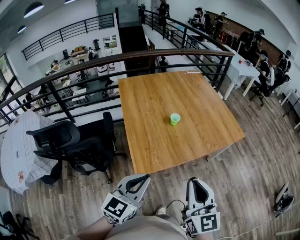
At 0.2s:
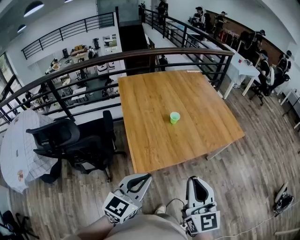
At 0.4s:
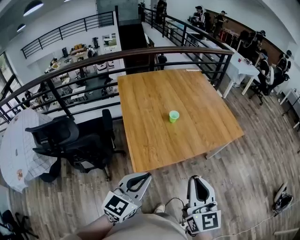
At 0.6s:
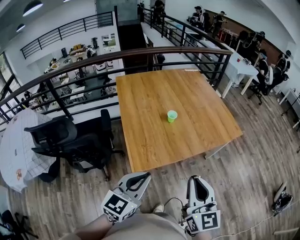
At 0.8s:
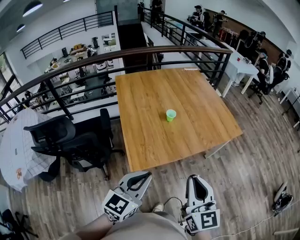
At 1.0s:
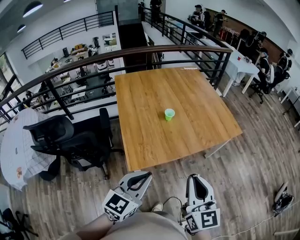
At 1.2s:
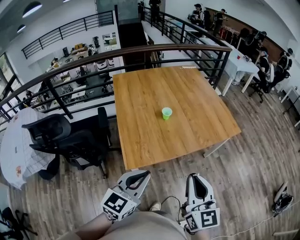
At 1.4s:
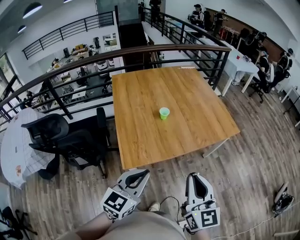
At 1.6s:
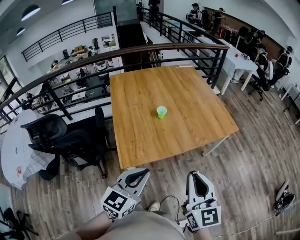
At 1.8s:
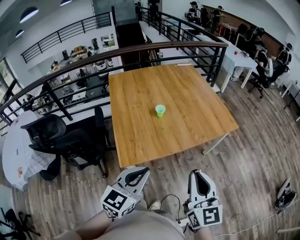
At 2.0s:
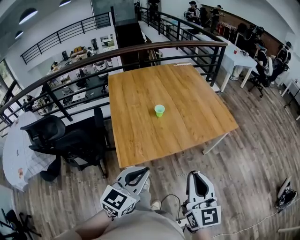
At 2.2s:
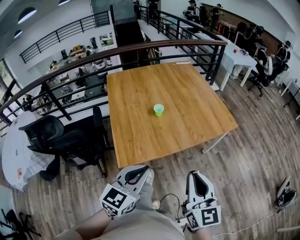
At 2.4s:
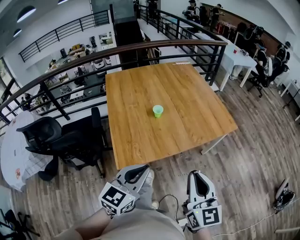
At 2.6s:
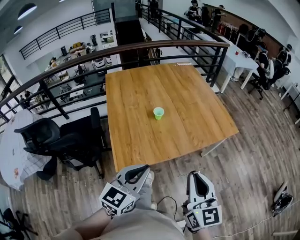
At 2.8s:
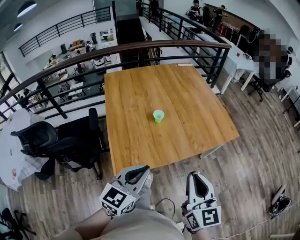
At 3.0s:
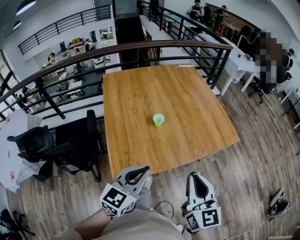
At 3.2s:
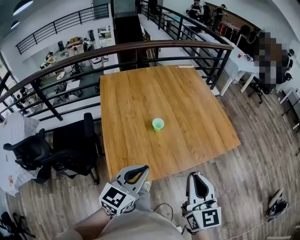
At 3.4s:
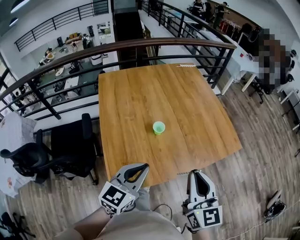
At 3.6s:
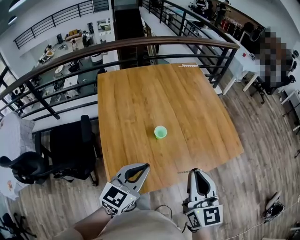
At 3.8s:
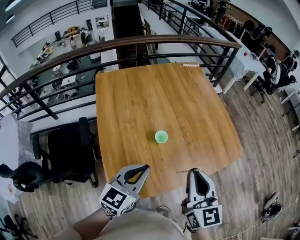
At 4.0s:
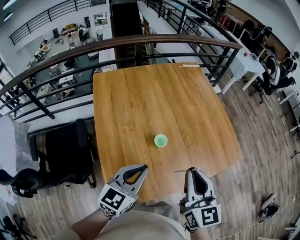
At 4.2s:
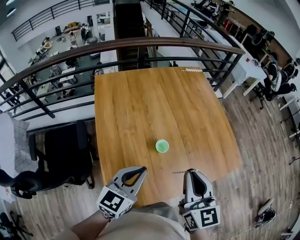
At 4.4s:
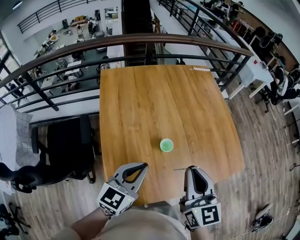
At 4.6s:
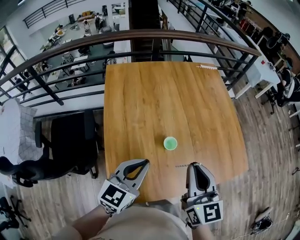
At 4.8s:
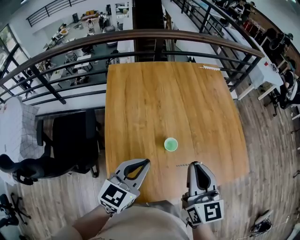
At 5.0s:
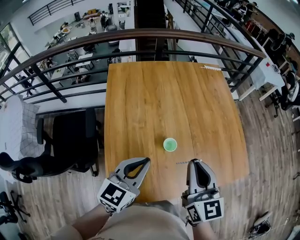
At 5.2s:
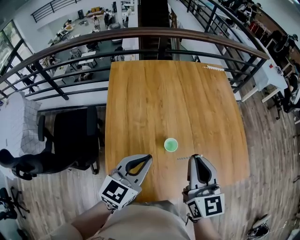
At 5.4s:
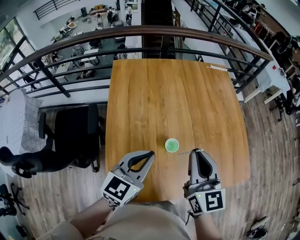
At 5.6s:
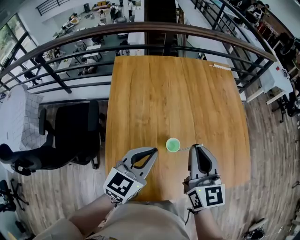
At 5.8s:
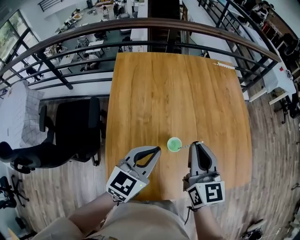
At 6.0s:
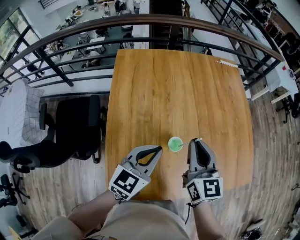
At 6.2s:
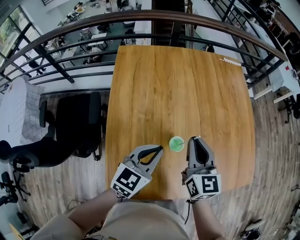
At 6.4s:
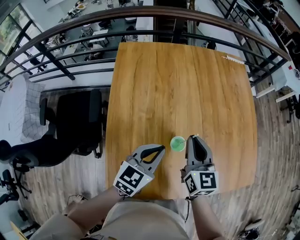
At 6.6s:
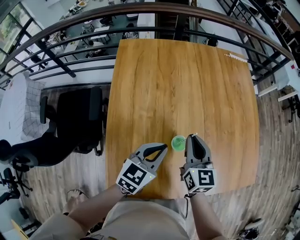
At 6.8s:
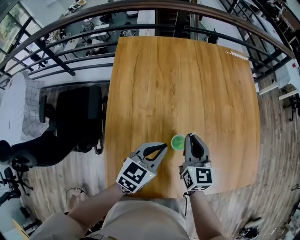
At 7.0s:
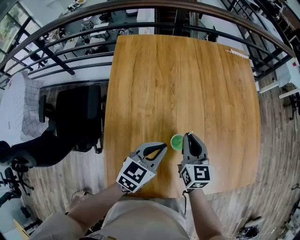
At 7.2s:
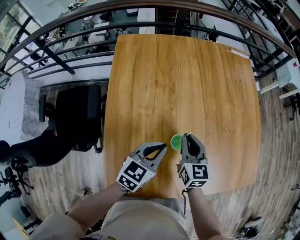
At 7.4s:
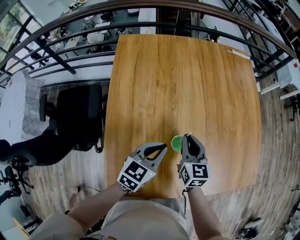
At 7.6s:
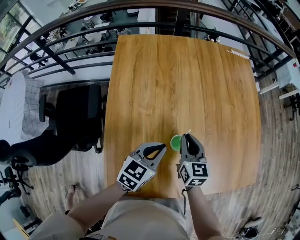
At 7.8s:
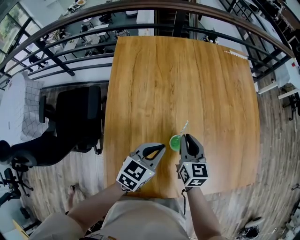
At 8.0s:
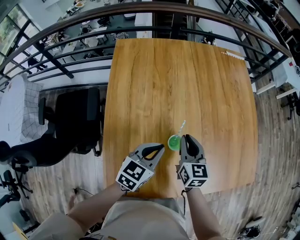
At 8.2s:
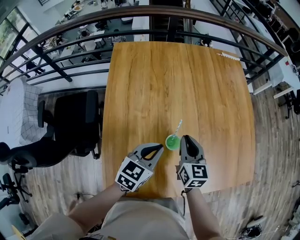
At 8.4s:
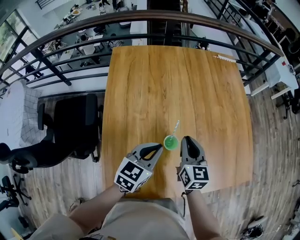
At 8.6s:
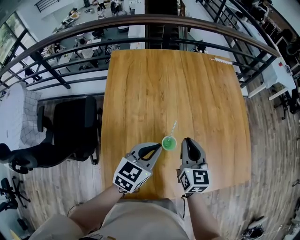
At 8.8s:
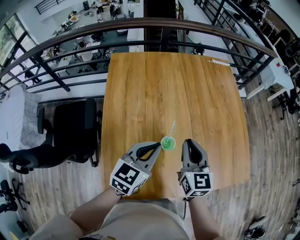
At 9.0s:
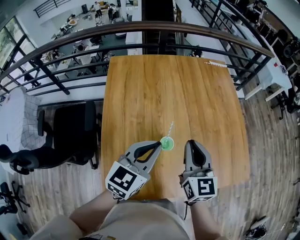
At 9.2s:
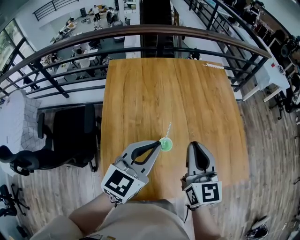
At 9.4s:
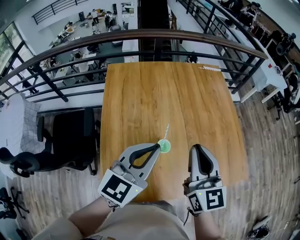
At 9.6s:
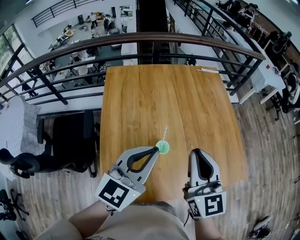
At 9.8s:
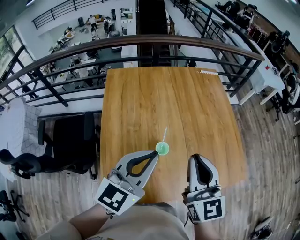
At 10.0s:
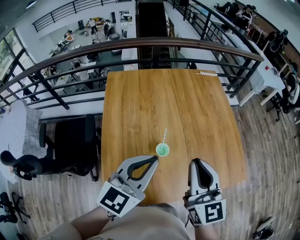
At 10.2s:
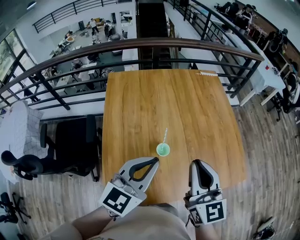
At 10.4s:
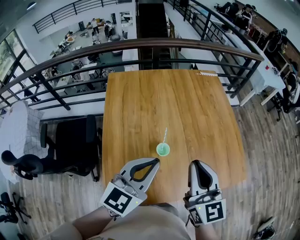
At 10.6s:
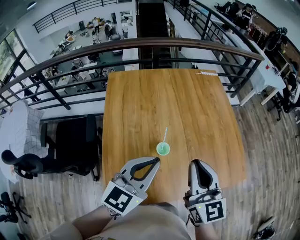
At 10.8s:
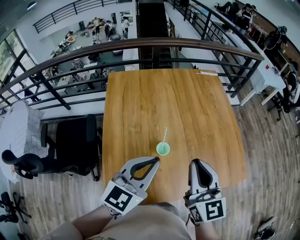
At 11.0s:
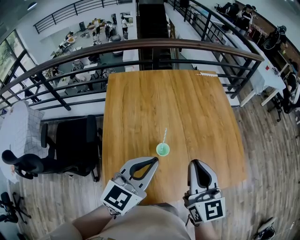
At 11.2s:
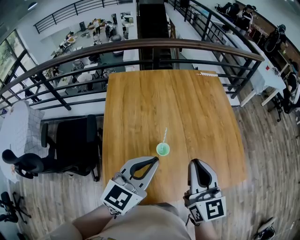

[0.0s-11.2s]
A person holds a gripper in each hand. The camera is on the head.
0.0s to 1.6s: The two grippers go some 10 cm to the right.
1.6s to 3.2s: The grippers both shift forward by some 20 cm.
3.2s to 4.8s: Both grippers move forward and to the left, some 25 cm.
4.8s to 6.4s: The grippers both shift forward and downward by approximately 15 cm.
6.4s to 8.0s: The right gripper moves downward, about 10 cm.
8.0s to 9.6s: The grippers both shift upward by roughly 25 cm. The right gripper changes its angle by about 30 degrees; the left gripper swivels approximately 20 degrees.
9.6s to 11.2s: The grippers stay close to where they were, moving slightly.

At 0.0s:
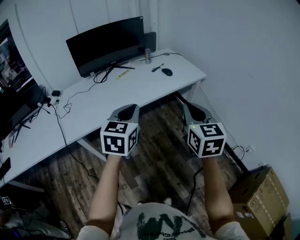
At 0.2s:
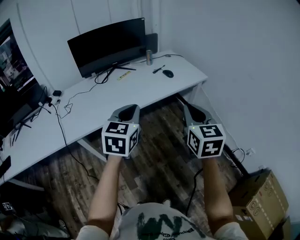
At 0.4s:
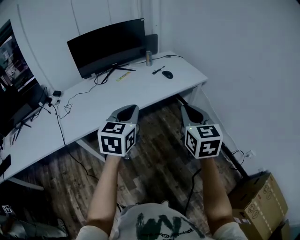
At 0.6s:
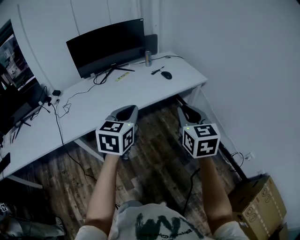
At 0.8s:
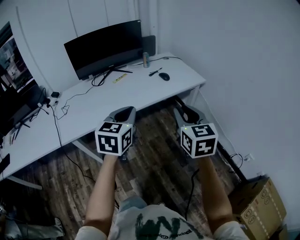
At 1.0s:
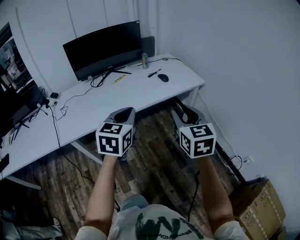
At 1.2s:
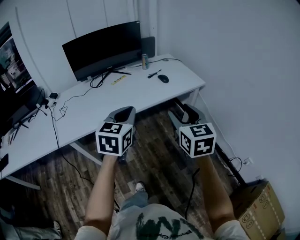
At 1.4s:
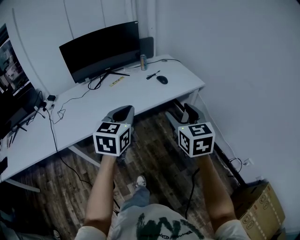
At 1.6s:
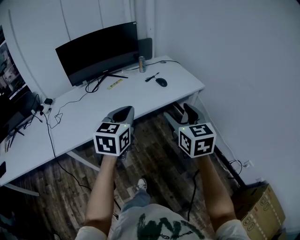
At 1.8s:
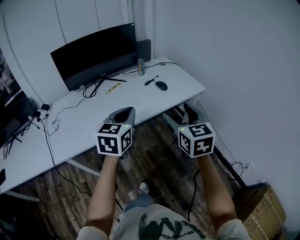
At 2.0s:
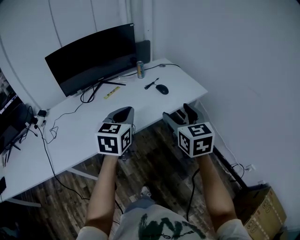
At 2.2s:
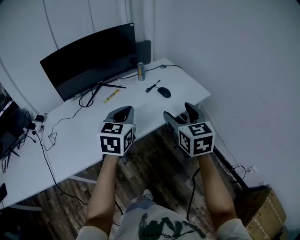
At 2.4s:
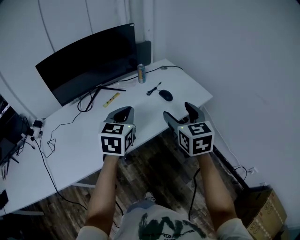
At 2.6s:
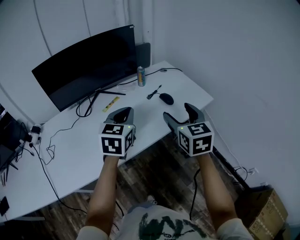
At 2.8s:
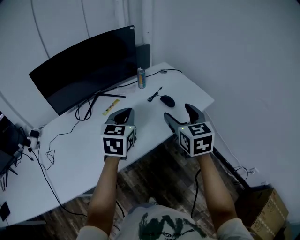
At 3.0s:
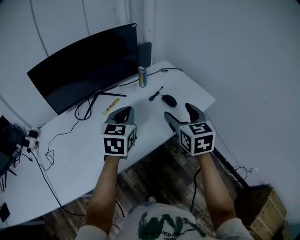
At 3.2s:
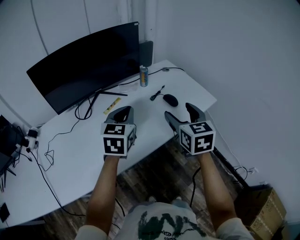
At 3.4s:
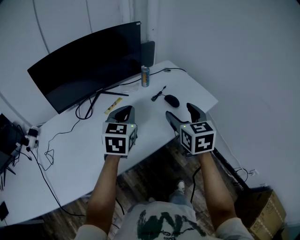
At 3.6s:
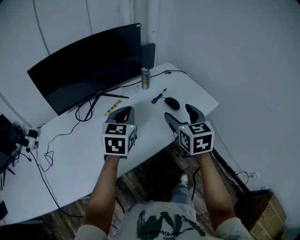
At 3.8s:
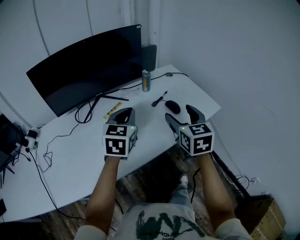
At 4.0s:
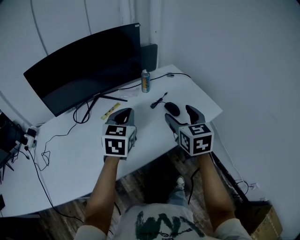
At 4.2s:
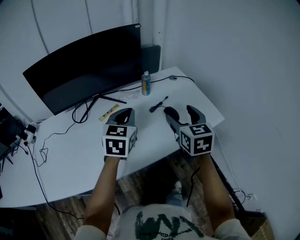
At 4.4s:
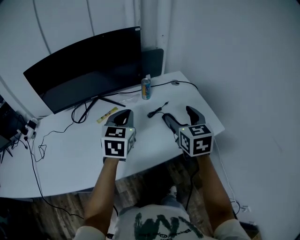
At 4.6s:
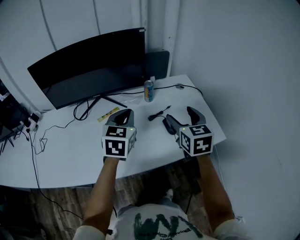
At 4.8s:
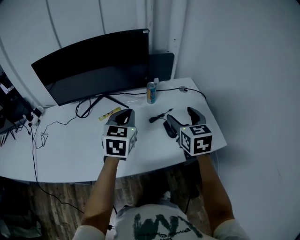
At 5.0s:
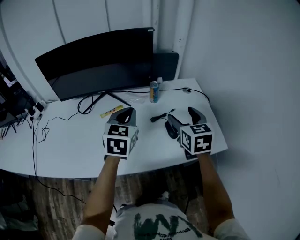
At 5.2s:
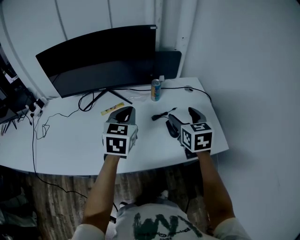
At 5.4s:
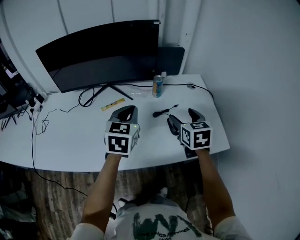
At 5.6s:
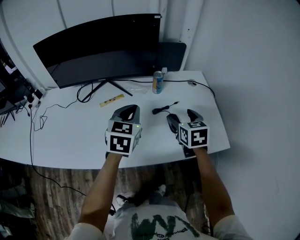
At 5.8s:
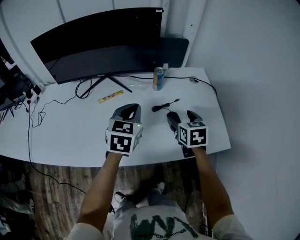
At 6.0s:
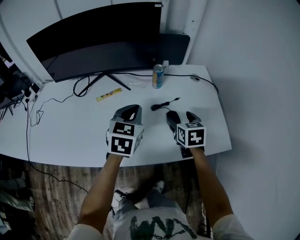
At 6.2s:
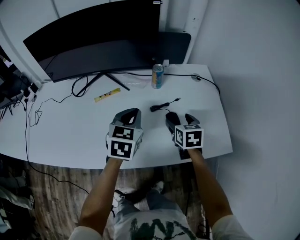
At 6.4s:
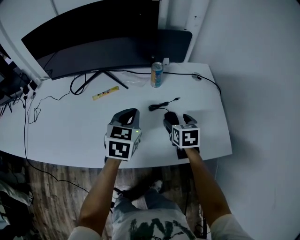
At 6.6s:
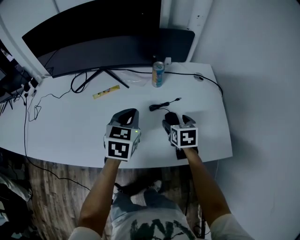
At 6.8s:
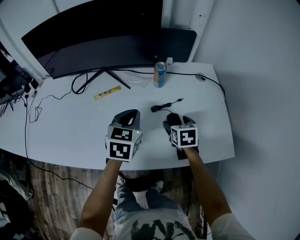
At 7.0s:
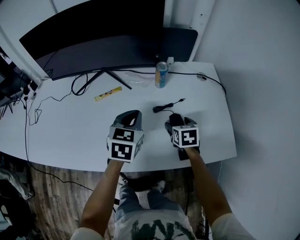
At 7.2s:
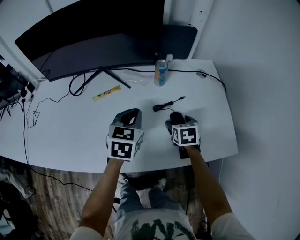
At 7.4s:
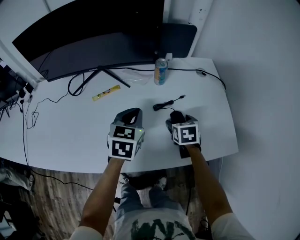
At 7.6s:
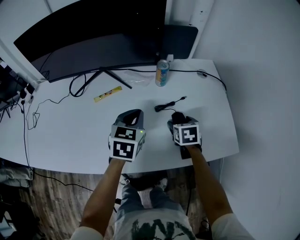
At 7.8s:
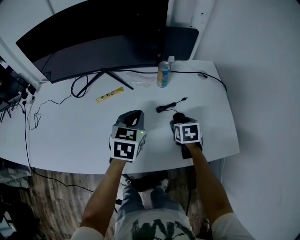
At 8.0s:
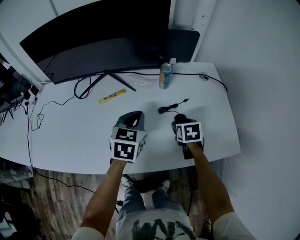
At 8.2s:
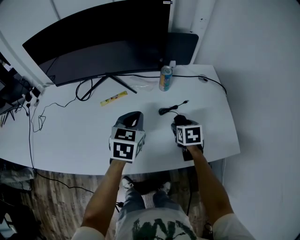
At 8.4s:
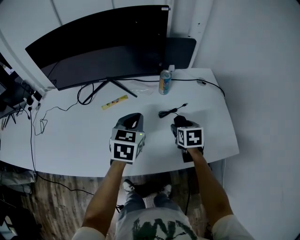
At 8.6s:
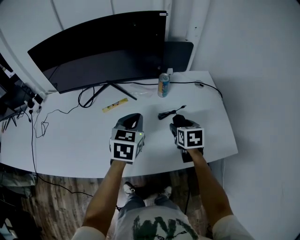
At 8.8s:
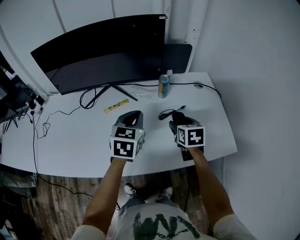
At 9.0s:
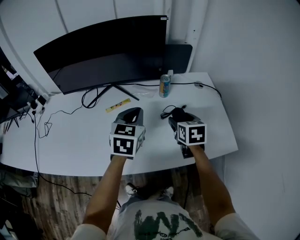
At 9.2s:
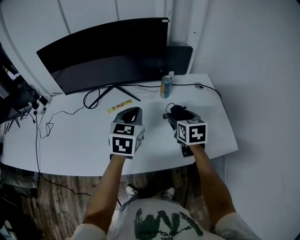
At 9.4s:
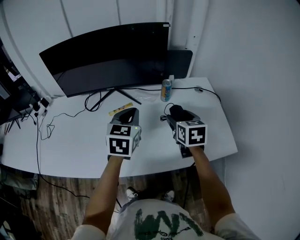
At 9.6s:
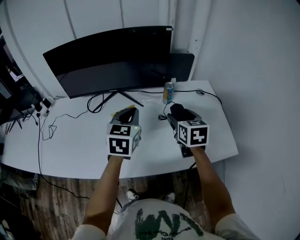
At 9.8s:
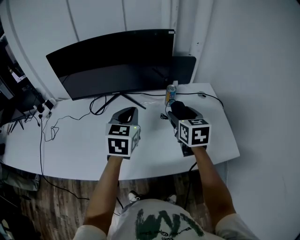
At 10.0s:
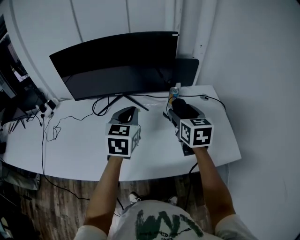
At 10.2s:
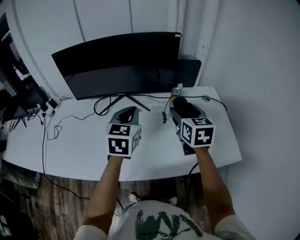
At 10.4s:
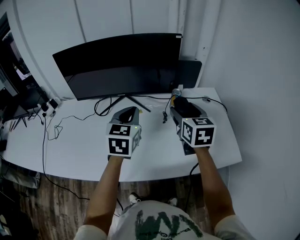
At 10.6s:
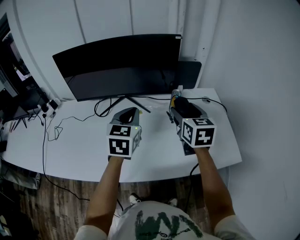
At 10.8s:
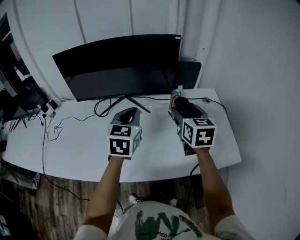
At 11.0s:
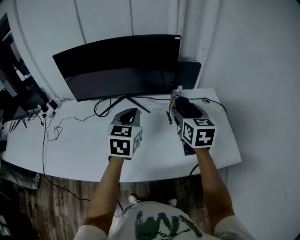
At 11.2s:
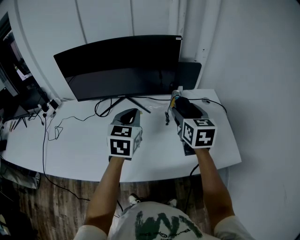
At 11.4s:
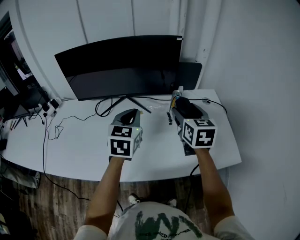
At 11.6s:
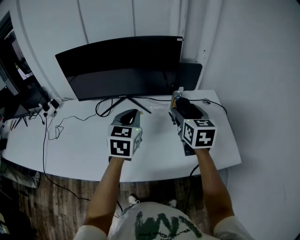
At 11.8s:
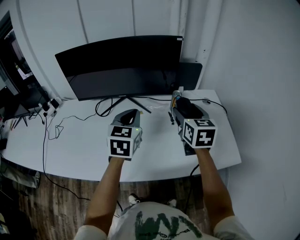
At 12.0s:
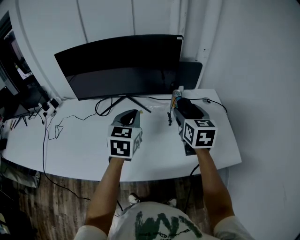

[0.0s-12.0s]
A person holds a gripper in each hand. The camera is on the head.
0.0s to 1.6s: The left gripper moves forward and to the right, approximately 10 cm. The right gripper travels forward by about 10 cm, and opens its fingers.
1.6s to 3.0s: The two grippers go some 25 cm forward.
3.0s to 4.4s: The two grippers go some 15 cm forward and to the right.
4.4s to 6.0s: The left gripper is displaced downward by some 10 cm. Meanwhile the right gripper is displaced downward and forward by roughly 20 cm, and changes its angle by approximately 20 degrees.
6.0s to 7.6s: The right gripper moves downward, about 10 cm; the left gripper goes about 5 cm downward.
7.6s to 9.0s: The grippers both shift upward by roughly 10 cm.
9.0s to 10.4s: The right gripper moves upward and to the left, about 15 cm; the left gripper shifts some 10 cm to the left and upward.
10.4s to 12.0s: Neither gripper changes place.

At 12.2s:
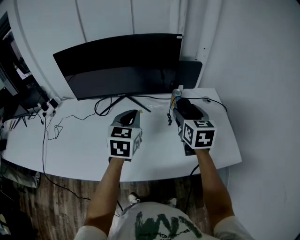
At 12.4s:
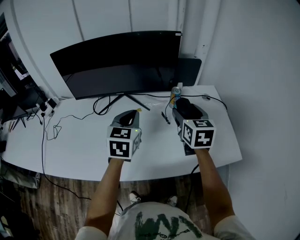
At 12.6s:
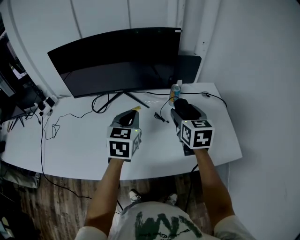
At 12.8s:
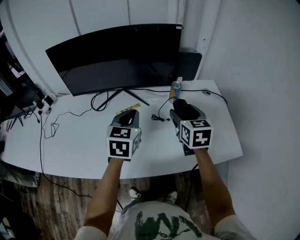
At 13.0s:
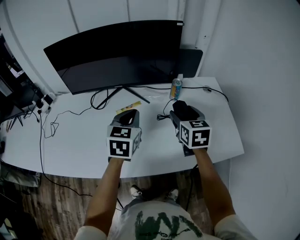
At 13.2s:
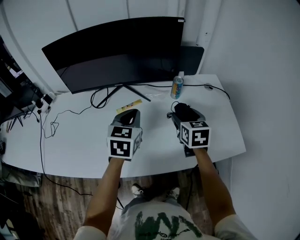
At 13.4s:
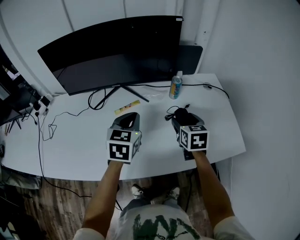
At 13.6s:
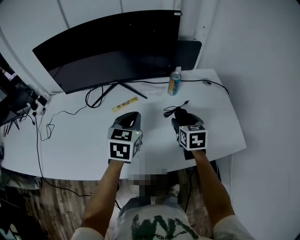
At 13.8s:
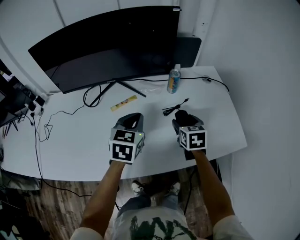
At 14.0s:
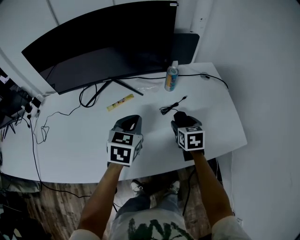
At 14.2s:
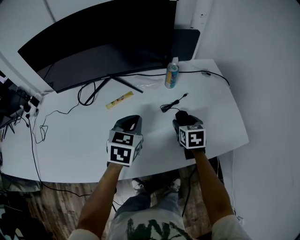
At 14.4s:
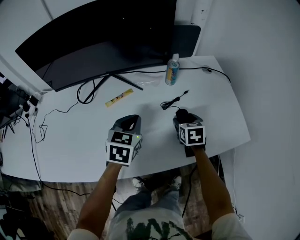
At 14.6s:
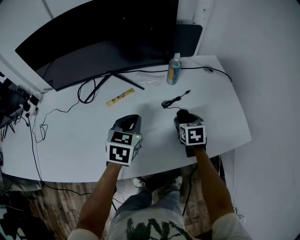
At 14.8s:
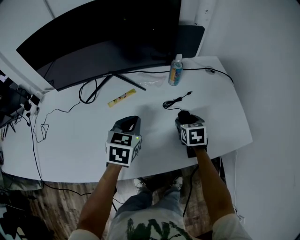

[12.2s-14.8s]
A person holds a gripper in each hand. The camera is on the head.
12.2s to 13.4s: The left gripper heads downward, covering about 5 cm; the right gripper travels downward by approximately 15 cm.
13.4s to 14.8s: The left gripper moves downward, about 10 cm, while the right gripper moves downward, roughly 15 cm.
